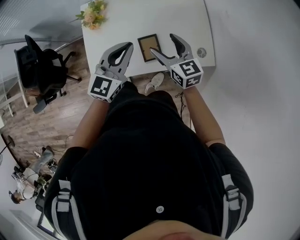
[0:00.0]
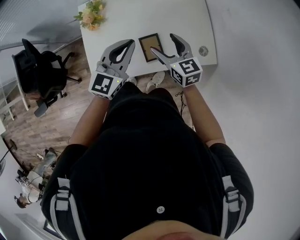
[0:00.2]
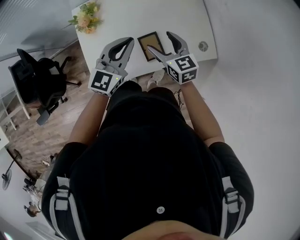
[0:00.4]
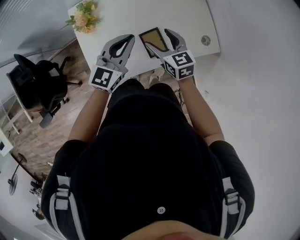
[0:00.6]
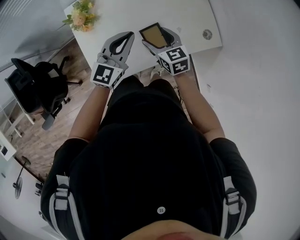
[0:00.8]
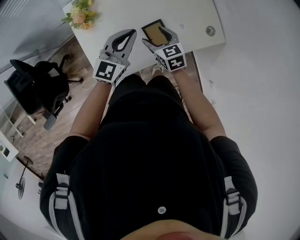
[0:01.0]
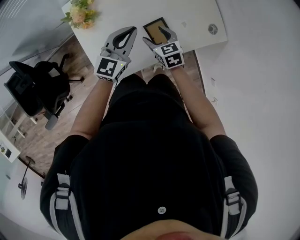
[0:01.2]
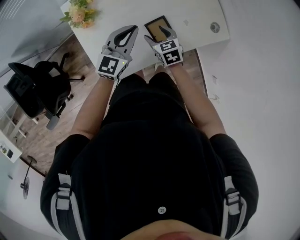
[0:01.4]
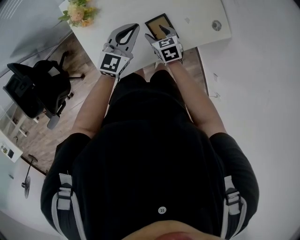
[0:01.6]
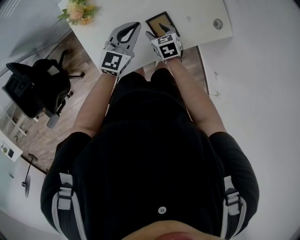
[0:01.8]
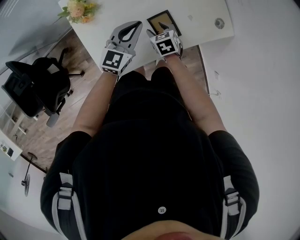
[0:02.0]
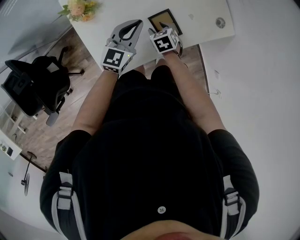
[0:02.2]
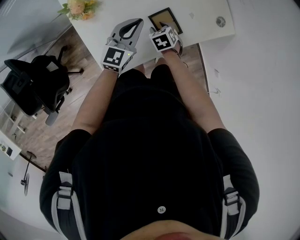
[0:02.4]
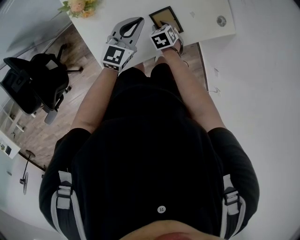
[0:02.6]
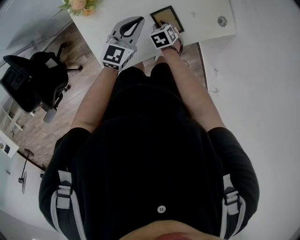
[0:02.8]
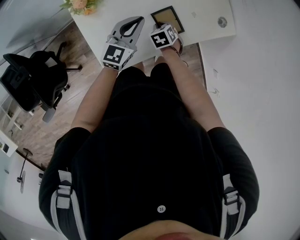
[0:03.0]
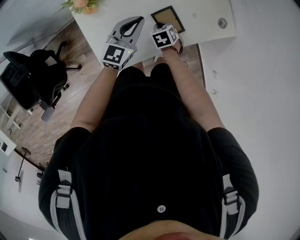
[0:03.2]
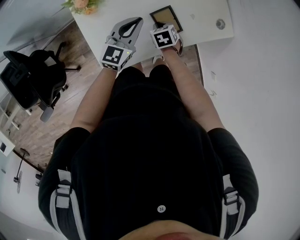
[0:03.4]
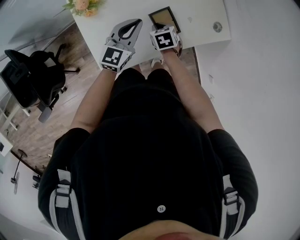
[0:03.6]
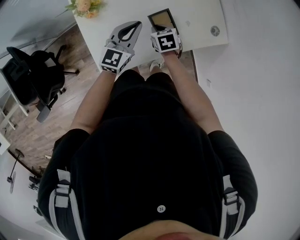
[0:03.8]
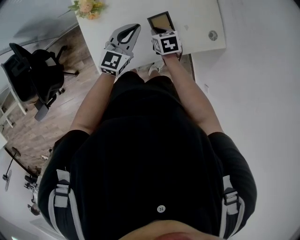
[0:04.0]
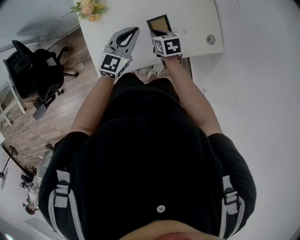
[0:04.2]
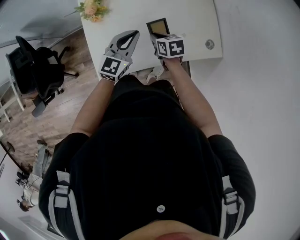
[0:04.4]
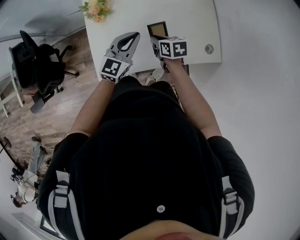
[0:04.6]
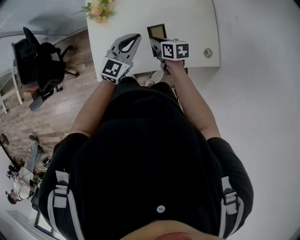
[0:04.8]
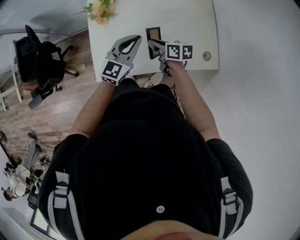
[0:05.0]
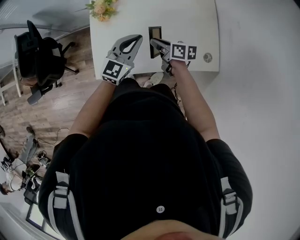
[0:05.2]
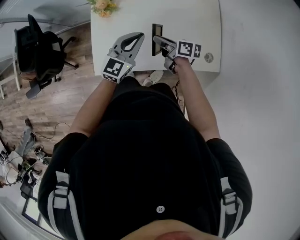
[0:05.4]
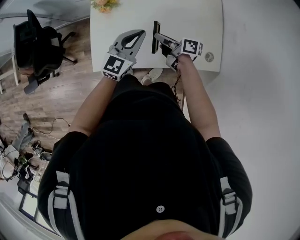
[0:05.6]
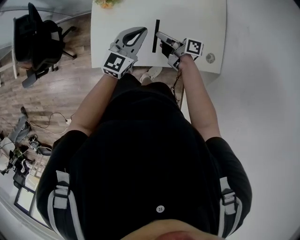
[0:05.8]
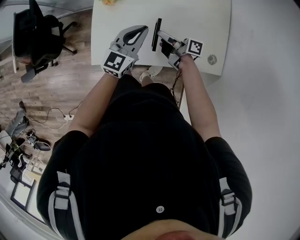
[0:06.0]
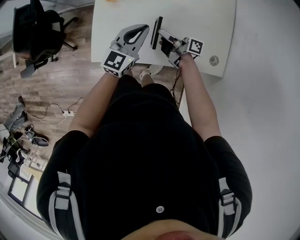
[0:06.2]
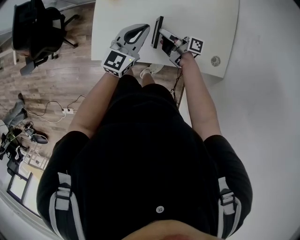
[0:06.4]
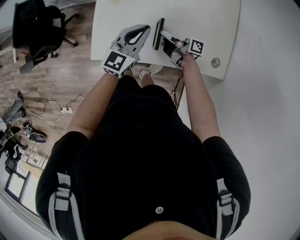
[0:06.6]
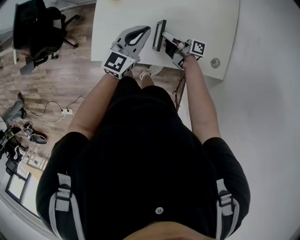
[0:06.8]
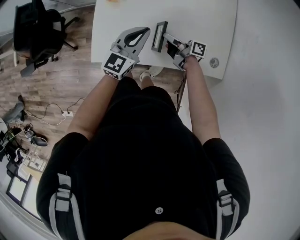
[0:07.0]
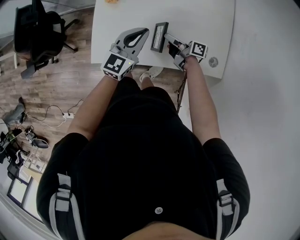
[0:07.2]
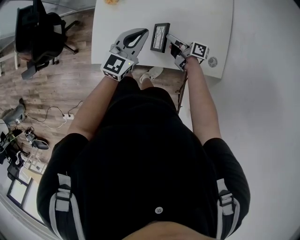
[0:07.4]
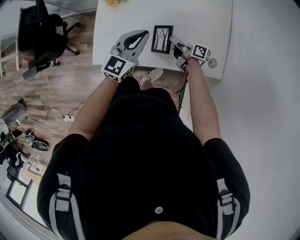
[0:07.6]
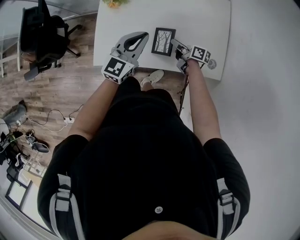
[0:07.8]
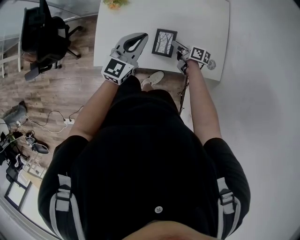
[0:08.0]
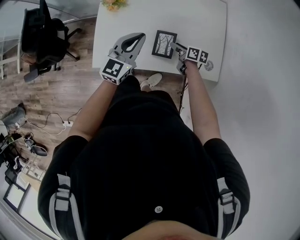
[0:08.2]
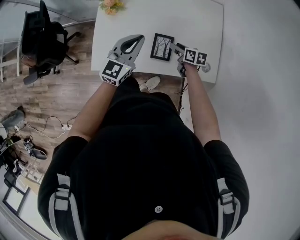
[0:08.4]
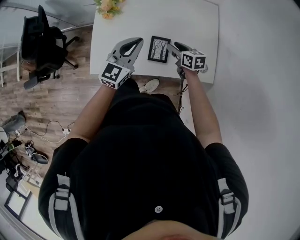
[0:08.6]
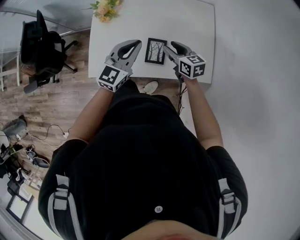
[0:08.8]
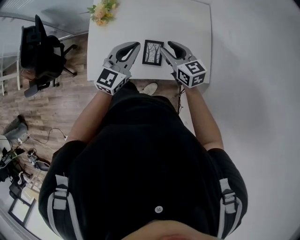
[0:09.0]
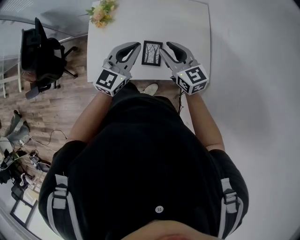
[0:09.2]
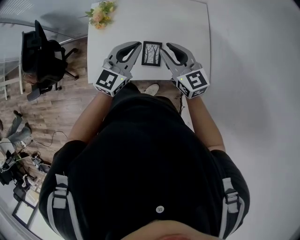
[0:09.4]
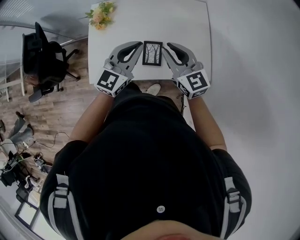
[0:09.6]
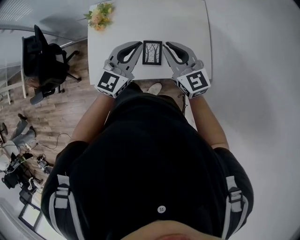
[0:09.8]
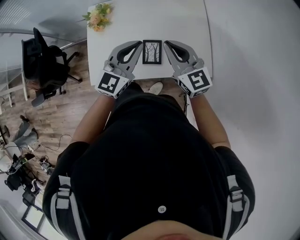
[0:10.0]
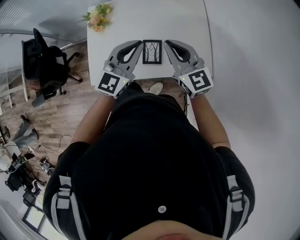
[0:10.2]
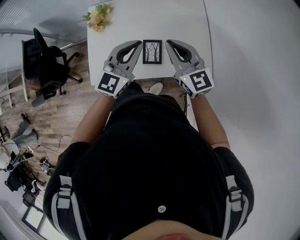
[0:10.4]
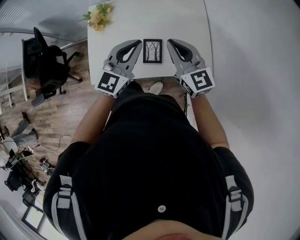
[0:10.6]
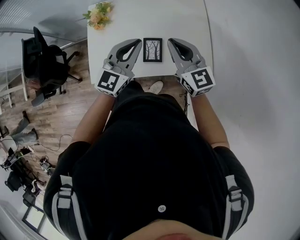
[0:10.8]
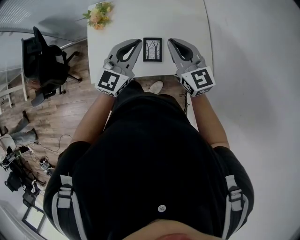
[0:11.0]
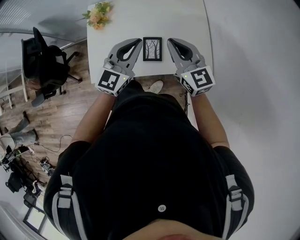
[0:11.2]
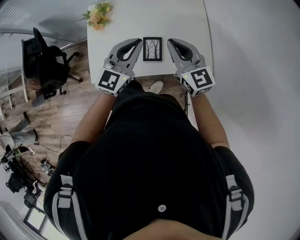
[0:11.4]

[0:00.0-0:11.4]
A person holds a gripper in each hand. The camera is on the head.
0:00.0 to 0:01.4: The right gripper heads downward and to the left, covering about 25 cm, and changes its angle by approximately 30 degrees; the left gripper travels downward, forward and to the left by approximately 15 cm.
0:01.4 to 0:02.8: The right gripper travels downward by about 10 cm, rotates approximately 20 degrees, and closes up.
0:02.8 to 0:04.2: The left gripper goes some 5 cm upward. The right gripper heads upward, covering roughly 10 cm, and swivels approximately 20 degrees.
0:04.2 to 0:05.6: The right gripper heads upward, covering roughly 5 cm, and tips its fingers upward by about 40 degrees.
0:05.6 to 0:07.2: The right gripper travels downward by approximately 10 cm.
0:07.2 to 0:08.6: The right gripper heads to the right, covering approximately 5 cm, and changes its angle by approximately 50 degrees; the left gripper is displaced upward by approximately 5 cm.
0:08.6 to 0:10.0: The left gripper travels upward and to the right by roughly 10 cm. Meanwhile the right gripper is displaced upward by approximately 25 cm, rotates about 40 degrees, and closes.
0:10.0 to 0:11.4: The two grippers keep their place.

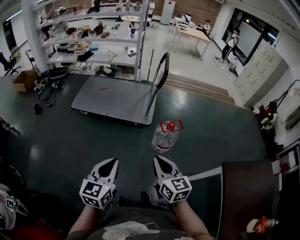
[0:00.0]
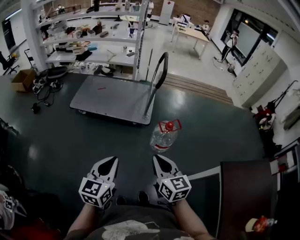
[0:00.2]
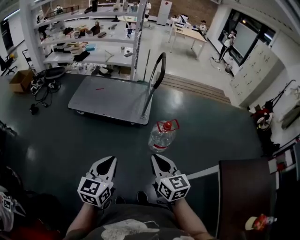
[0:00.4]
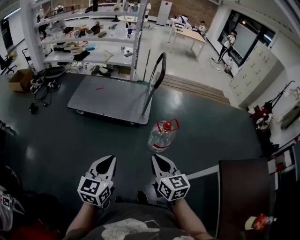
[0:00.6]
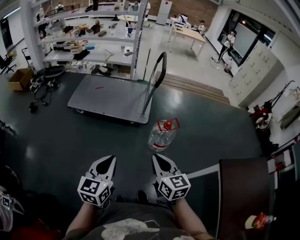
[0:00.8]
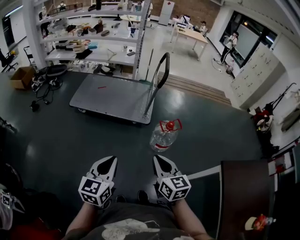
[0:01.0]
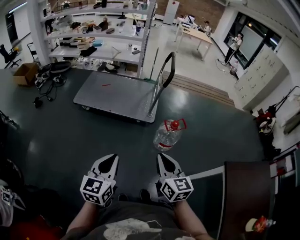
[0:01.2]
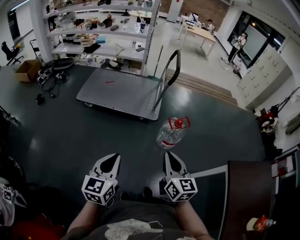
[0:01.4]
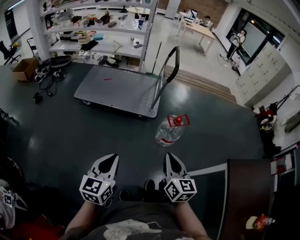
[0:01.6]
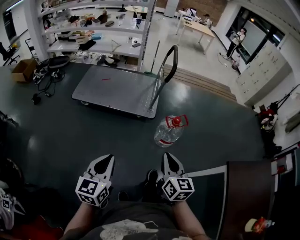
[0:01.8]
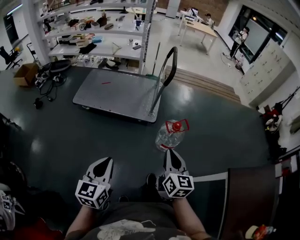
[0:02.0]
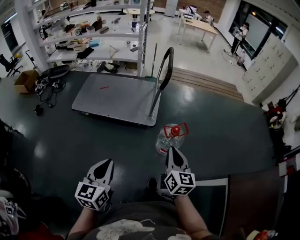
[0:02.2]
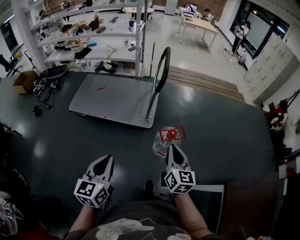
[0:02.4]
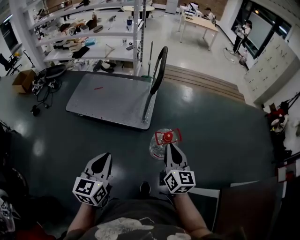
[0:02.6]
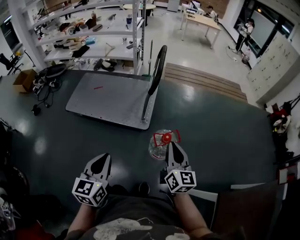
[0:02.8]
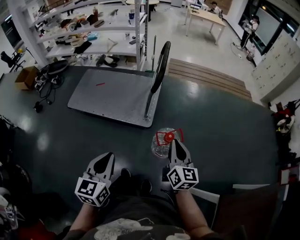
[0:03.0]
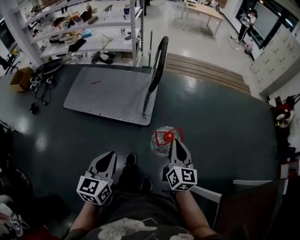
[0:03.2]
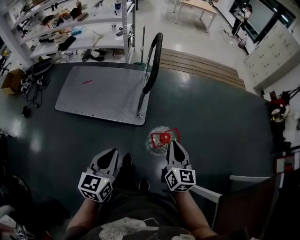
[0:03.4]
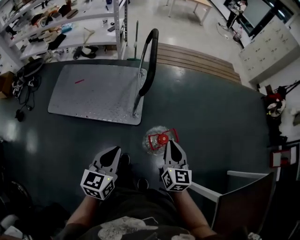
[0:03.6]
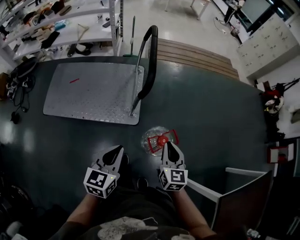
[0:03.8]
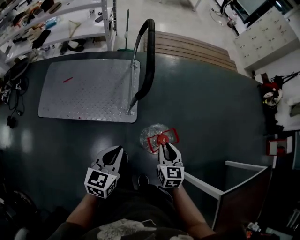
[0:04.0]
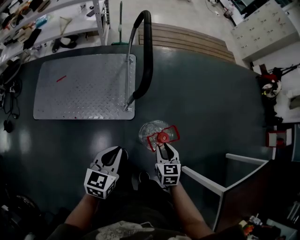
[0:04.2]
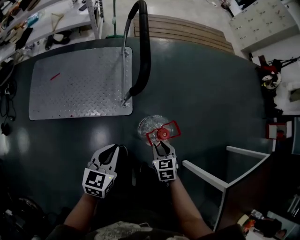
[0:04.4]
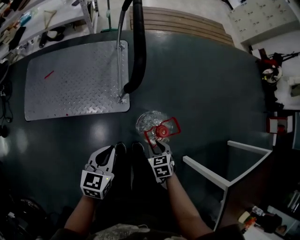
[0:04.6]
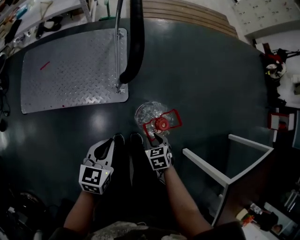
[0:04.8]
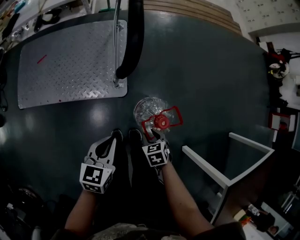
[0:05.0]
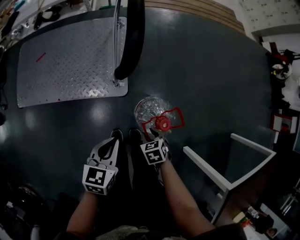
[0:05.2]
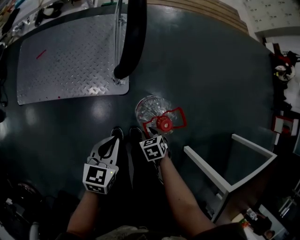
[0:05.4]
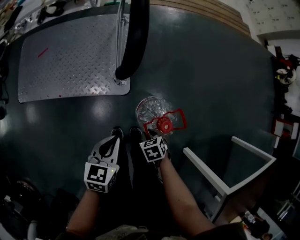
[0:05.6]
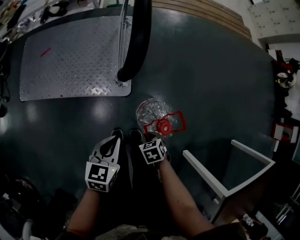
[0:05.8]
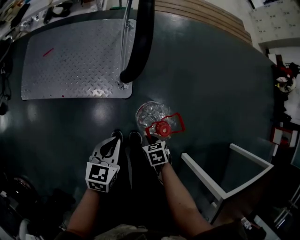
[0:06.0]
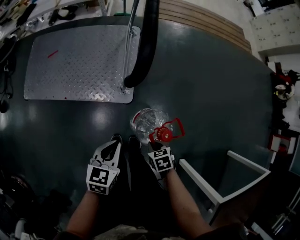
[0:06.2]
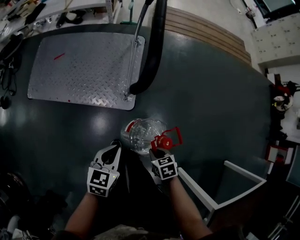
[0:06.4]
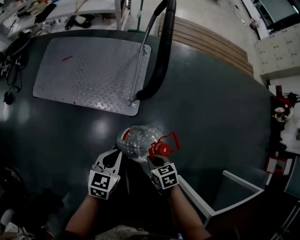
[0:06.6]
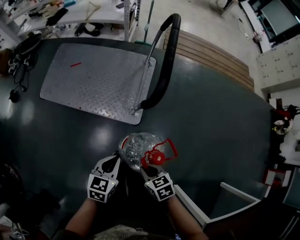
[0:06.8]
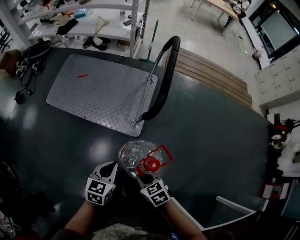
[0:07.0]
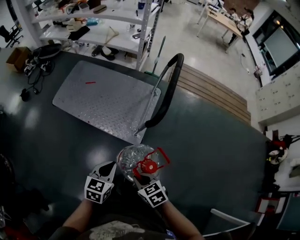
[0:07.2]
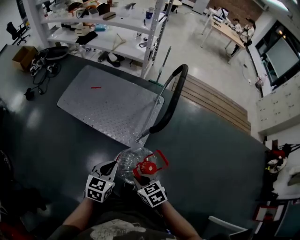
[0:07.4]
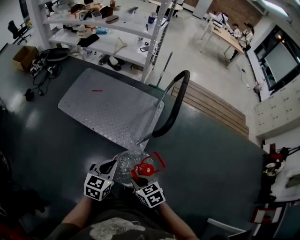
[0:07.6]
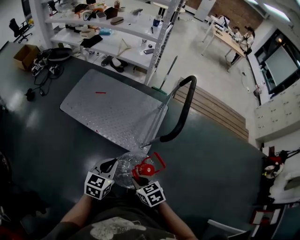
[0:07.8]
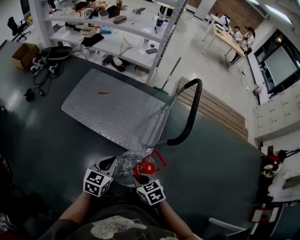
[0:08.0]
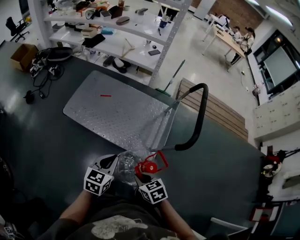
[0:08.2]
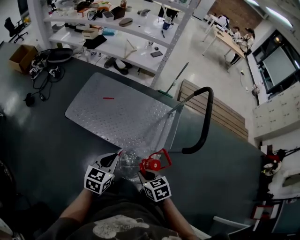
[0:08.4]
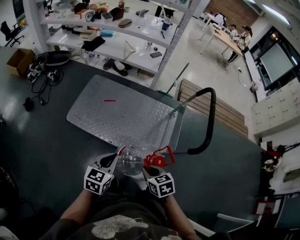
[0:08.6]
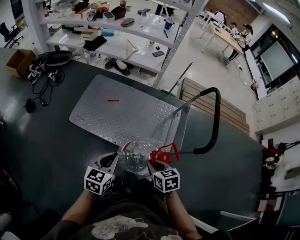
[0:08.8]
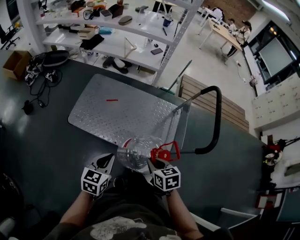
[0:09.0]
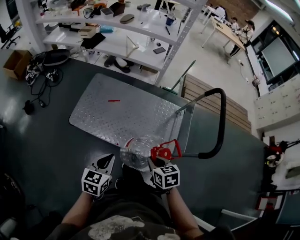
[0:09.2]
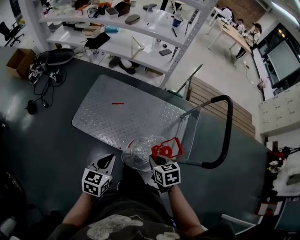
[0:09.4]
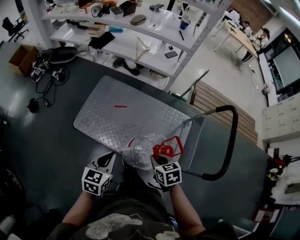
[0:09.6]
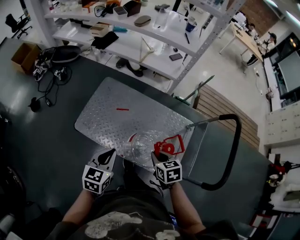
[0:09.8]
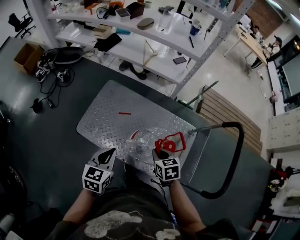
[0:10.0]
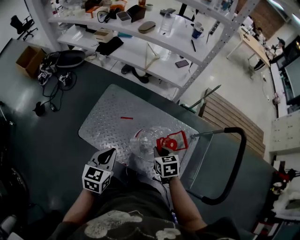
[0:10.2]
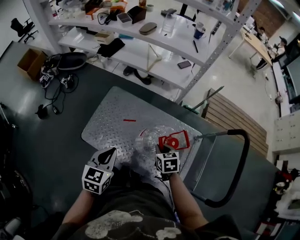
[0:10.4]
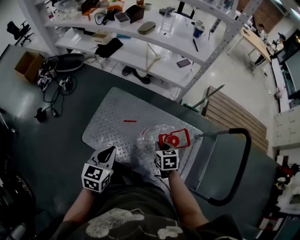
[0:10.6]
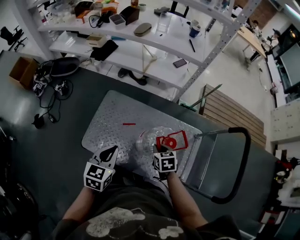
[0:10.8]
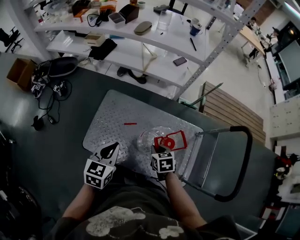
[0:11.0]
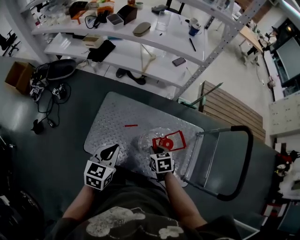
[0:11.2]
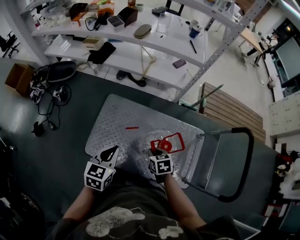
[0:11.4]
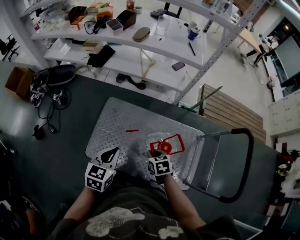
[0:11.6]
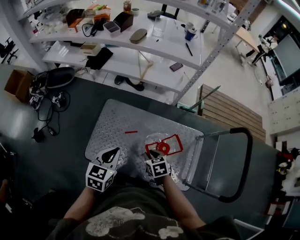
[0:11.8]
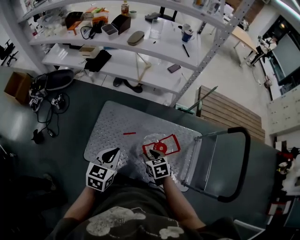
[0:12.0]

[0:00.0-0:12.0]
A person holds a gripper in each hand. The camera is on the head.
0:00.0 to 0:01.6: The left gripper travels to the left by about 5 cm.
0:01.6 to 0:03.0: Both grippers move forward and to the right, about 35 cm.
0:03.0 to 0:04.4: The right gripper goes approximately 30 cm downward and forward, tips its fingers downward by roughly 50 degrees, and opens, while the left gripper goes roughly 30 cm forward and downward, and changes its angle by roughly 30 degrees.
0:04.4 to 0:06.0: Both grippers travel together downward, some 15 cm. The right gripper swivels about 30 degrees, and closes its fingers.
0:06.0 to 0:07.6: The left gripper travels upward and to the left by roughly 20 cm, and turns by about 20 degrees. Meanwhile the right gripper moves upward and to the left, roughly 30 cm, and turns by some 40 degrees.
0:07.6 to 0:09.0: The right gripper travels forward and to the left by about 30 cm, and turns by some 20 degrees. The left gripper heads to the left and forward, covering approximately 35 cm.
0:09.0 to 0:10.4: Both grippers travel together forward, roughly 30 cm.
0:10.4 to 0:12.0: The left gripper heads forward and to the left, covering some 10 cm; the right gripper goes approximately 10 cm to the left, and opens up.
